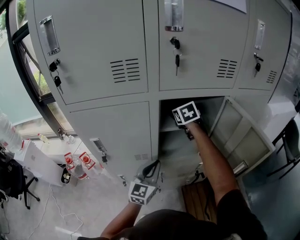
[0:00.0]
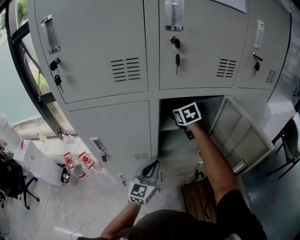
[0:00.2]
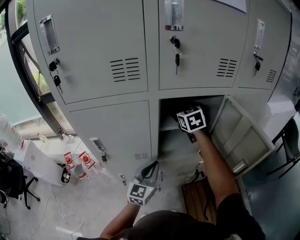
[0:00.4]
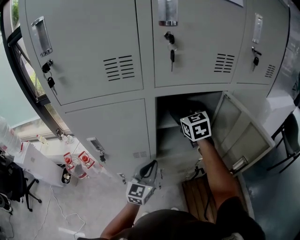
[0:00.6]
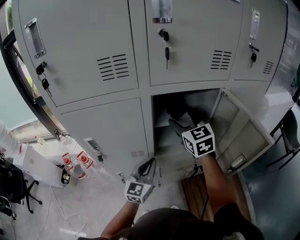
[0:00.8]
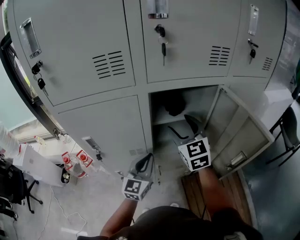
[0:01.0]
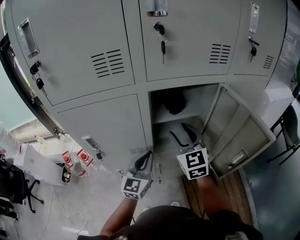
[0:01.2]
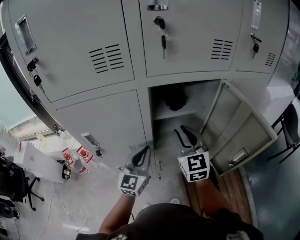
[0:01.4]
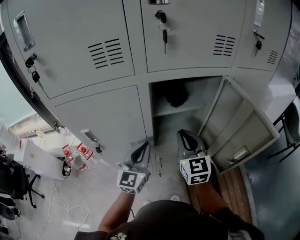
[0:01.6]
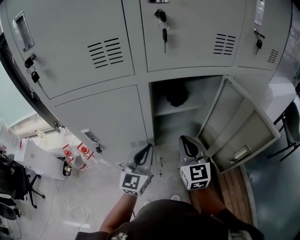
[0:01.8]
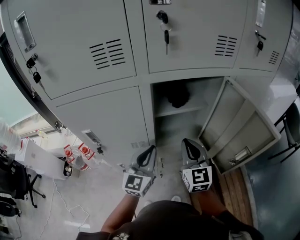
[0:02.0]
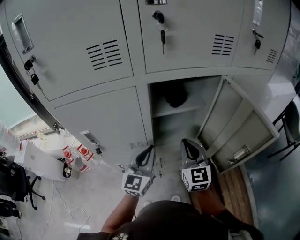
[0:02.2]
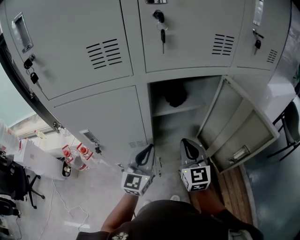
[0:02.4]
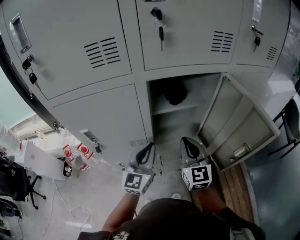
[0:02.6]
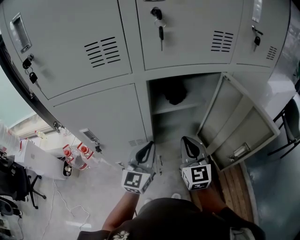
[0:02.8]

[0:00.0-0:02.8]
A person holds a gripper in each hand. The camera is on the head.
0:00.0 to 0:01.4: The right gripper moves backward, approximately 20 cm, turns by approximately 30 degrees, and closes its fingers.
0:01.4 to 0:02.8: The right gripper ends up some 5 cm from where it was.

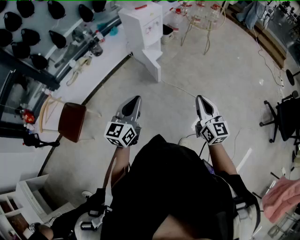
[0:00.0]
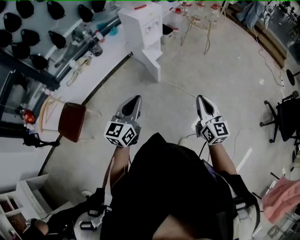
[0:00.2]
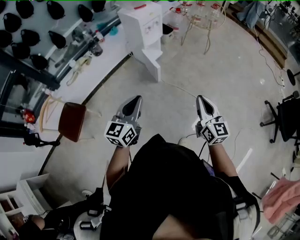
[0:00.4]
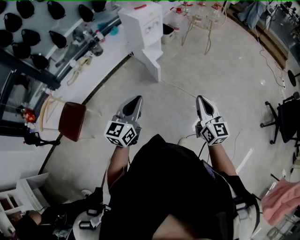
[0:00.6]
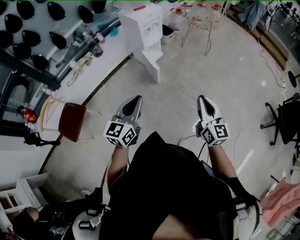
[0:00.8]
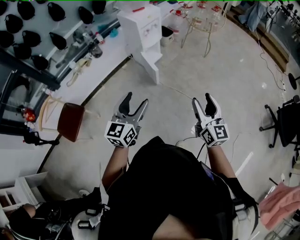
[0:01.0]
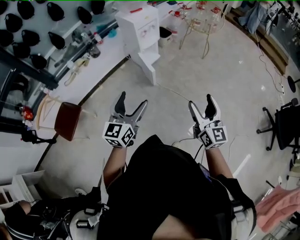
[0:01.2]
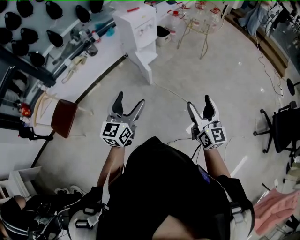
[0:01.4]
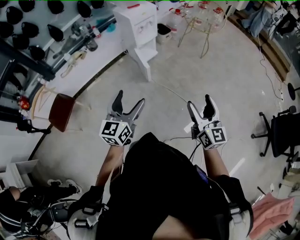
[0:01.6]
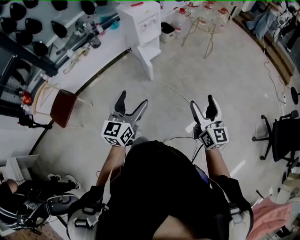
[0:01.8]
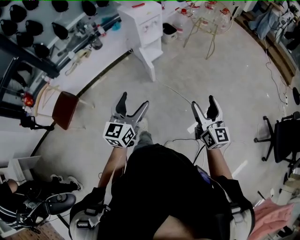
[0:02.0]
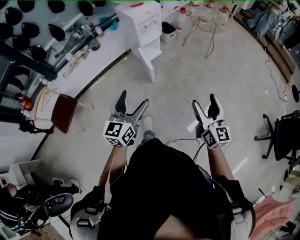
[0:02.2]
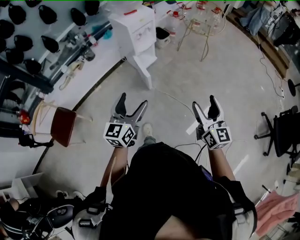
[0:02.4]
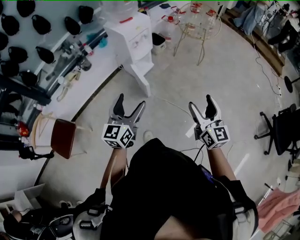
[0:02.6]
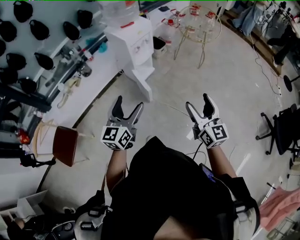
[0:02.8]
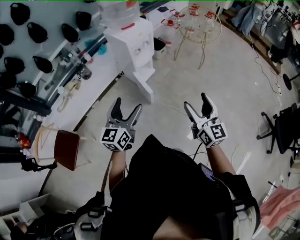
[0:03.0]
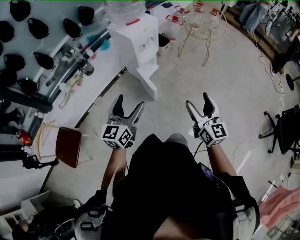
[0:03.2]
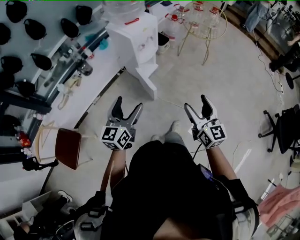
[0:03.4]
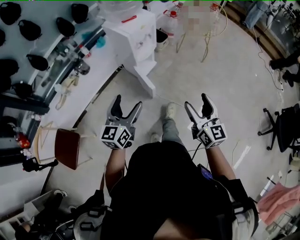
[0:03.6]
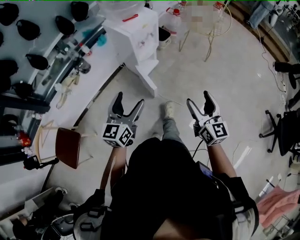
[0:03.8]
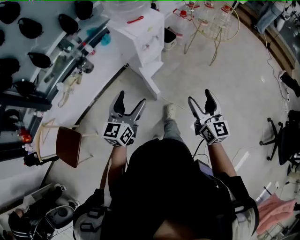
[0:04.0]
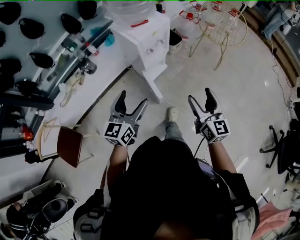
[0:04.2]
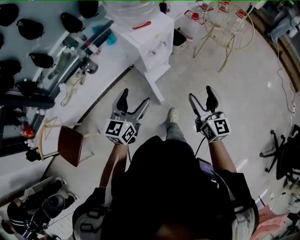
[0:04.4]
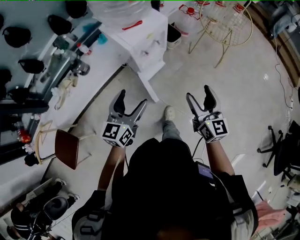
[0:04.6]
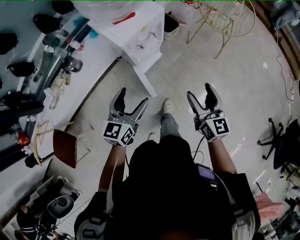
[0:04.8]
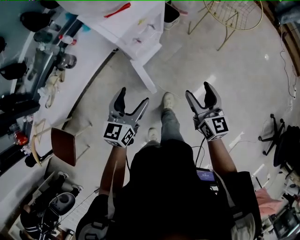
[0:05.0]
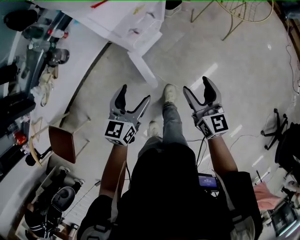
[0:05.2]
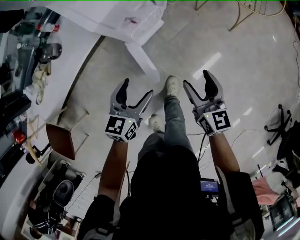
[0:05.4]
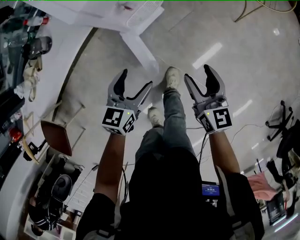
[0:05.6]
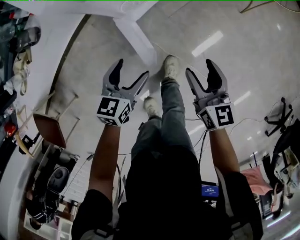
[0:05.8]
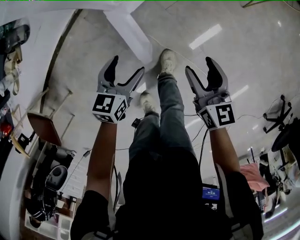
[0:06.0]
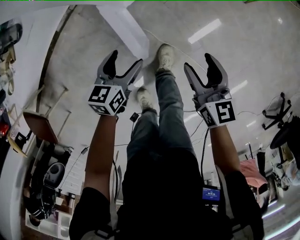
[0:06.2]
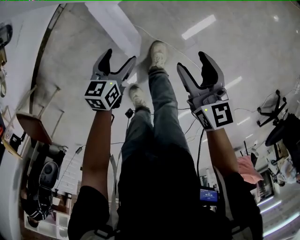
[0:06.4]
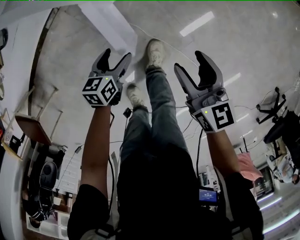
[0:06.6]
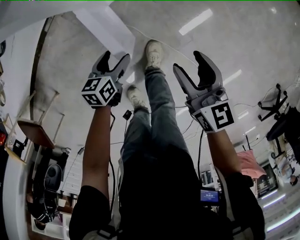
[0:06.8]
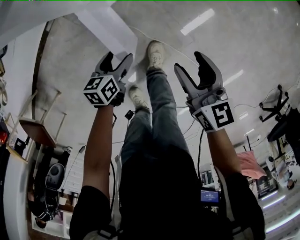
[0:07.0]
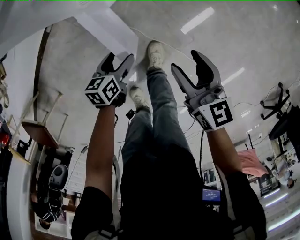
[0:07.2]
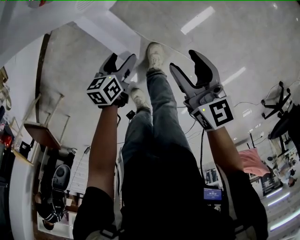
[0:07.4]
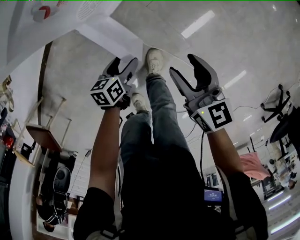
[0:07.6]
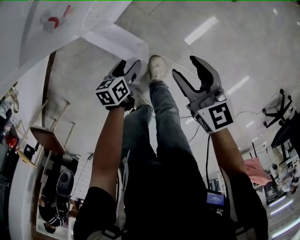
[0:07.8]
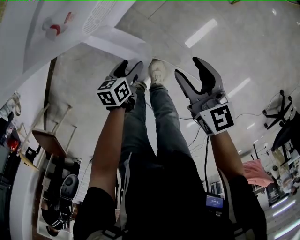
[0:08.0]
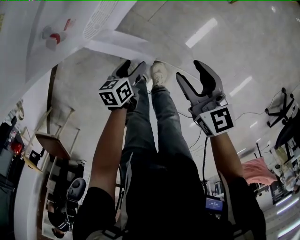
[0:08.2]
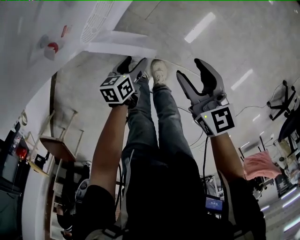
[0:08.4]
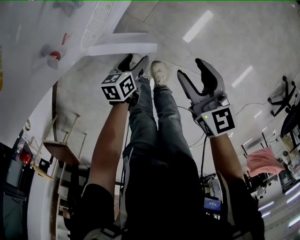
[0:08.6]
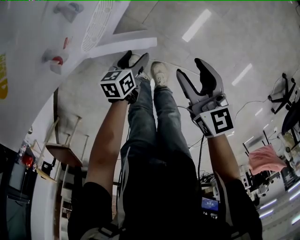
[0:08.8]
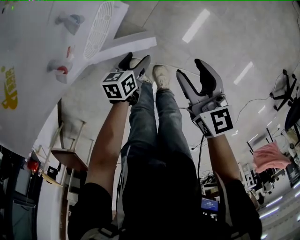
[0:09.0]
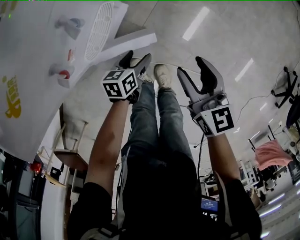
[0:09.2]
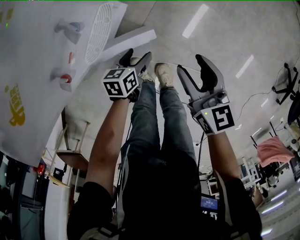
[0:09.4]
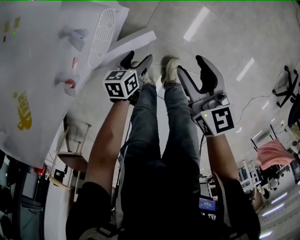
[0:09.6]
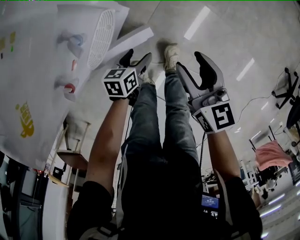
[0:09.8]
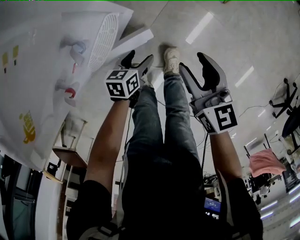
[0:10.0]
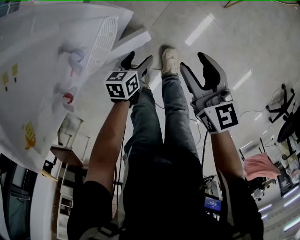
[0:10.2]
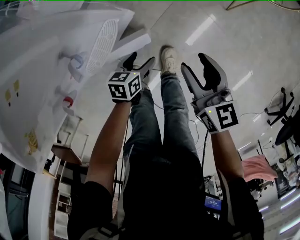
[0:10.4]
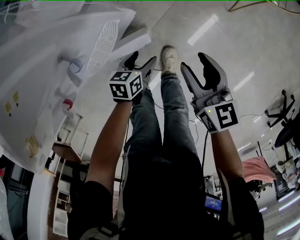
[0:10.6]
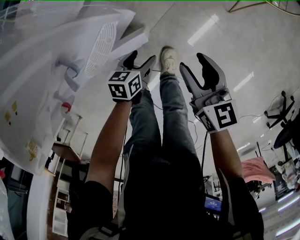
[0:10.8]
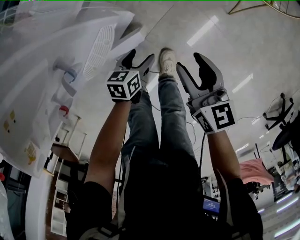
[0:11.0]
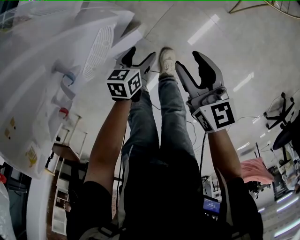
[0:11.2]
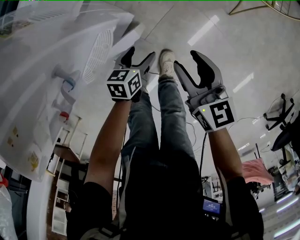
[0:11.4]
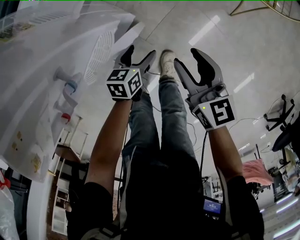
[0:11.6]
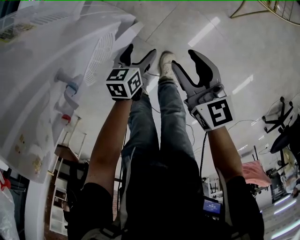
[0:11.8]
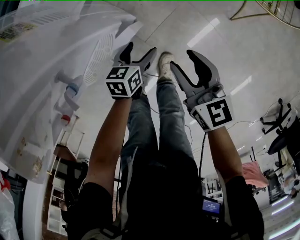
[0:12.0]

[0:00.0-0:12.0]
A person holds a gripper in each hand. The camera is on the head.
0:00.0 to 0:01.6: The grippers both shift to the right by approximately 15 cm. The right gripper opens its fingers; the left gripper opens.
0:01.6 to 0:03.0: The two grippers go roughly 20 cm forward and to the left.
0:03.0 to 0:04.4: The grippers both shift forward by approximately 25 cm.
0:04.4 to 0:06.0: The grippers both shift downward by approximately 40 cm. The left gripper rotates roughly 30 degrees. Meanwhile the right gripper changes its angle by about 20 degrees.
0:06.0 to 0:07.6: The left gripper is displaced downward and to the right by some 15 cm, and rotates some 30 degrees.
0:07.6 to 0:09.0: The left gripper moves forward, roughly 15 cm. Meanwhile the right gripper goes roughly 5 cm forward.
0:09.0 to 0:10.4: The grippers both shift forward by roughly 10 cm.
0:10.4 to 0:12.0: The right gripper moves forward, roughly 5 cm. The left gripper travels forward by about 10 cm.

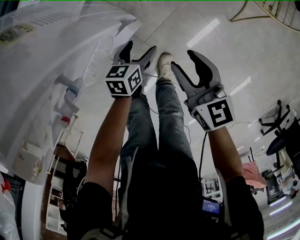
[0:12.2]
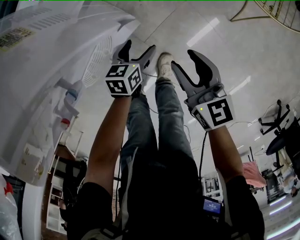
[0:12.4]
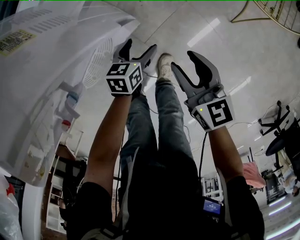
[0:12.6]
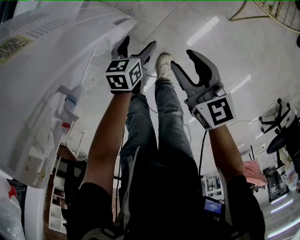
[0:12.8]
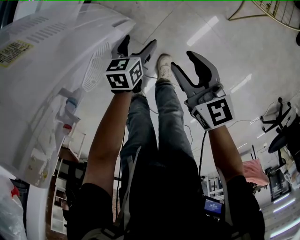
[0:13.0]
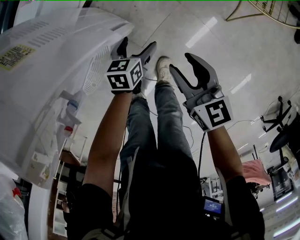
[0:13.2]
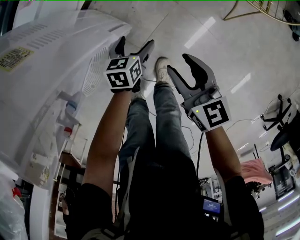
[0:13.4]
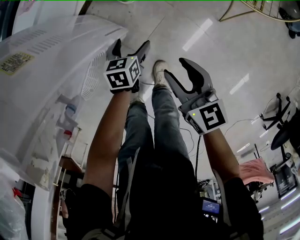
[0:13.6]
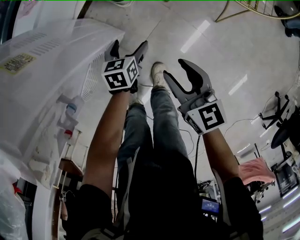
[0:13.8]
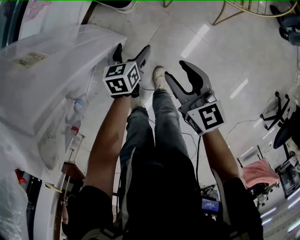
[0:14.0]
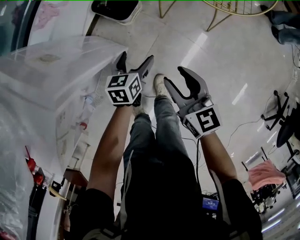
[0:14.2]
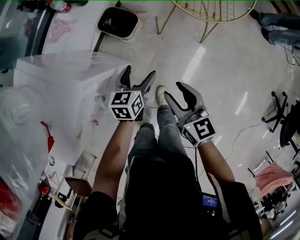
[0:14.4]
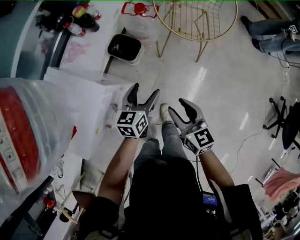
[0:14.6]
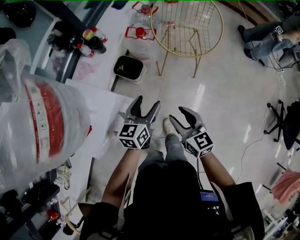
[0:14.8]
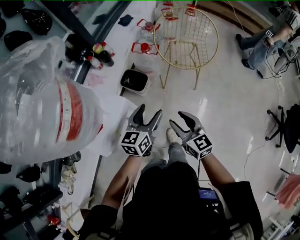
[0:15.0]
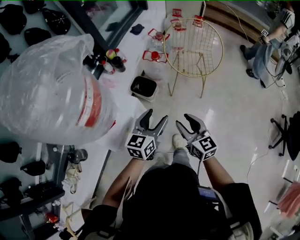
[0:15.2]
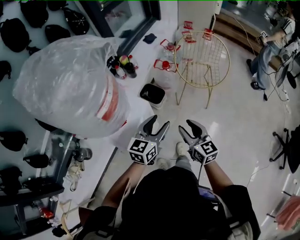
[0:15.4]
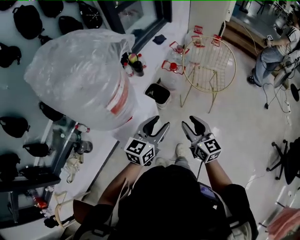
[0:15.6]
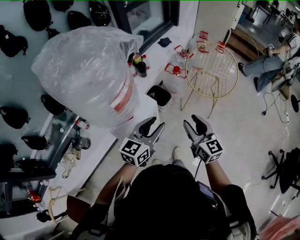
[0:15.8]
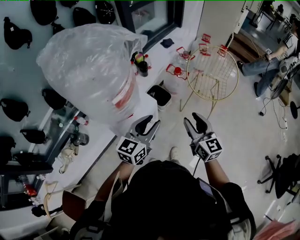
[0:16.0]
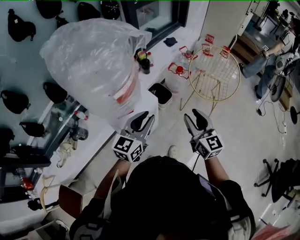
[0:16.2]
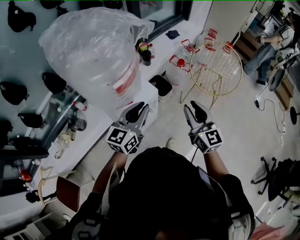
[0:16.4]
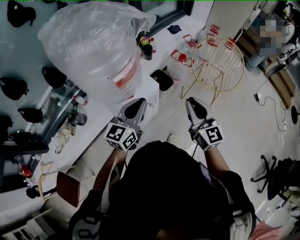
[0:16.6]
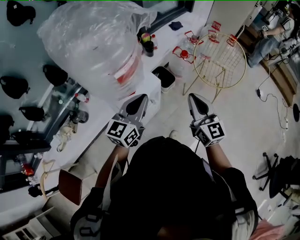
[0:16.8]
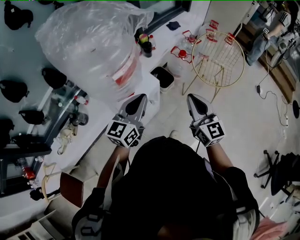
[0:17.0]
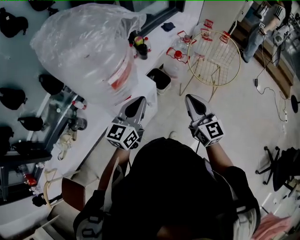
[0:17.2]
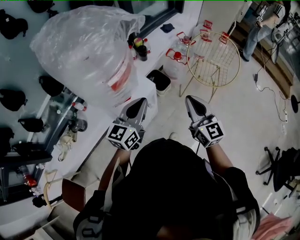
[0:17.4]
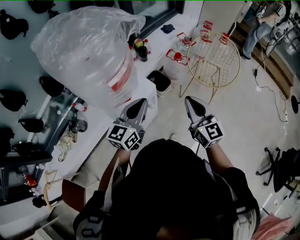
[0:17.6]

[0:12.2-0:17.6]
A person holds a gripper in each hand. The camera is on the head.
0:12.2 to 0:13.6: The left gripper travels forward by roughly 5 cm.
0:13.6 to 0:15.0: The left gripper moves upward, about 50 cm, and angles its fingers upward, by roughly 30 degrees, while the right gripper is displaced upward by roughly 35 cm, and turns by about 20 degrees.
0:15.0 to 0:16.2: The left gripper heads upward, to the left and backward, covering some 20 cm, and closes. The right gripper heads upward, covering about 15 cm.
0:16.2 to 0:17.6: The right gripper closes its fingers.

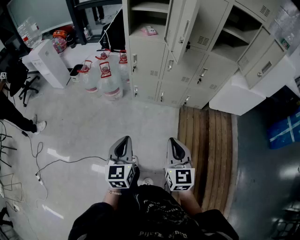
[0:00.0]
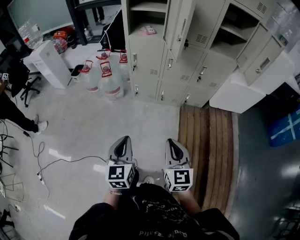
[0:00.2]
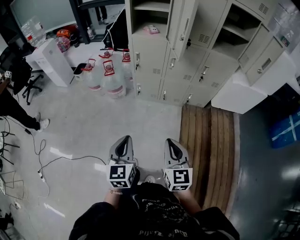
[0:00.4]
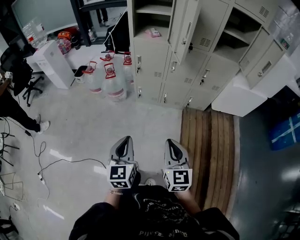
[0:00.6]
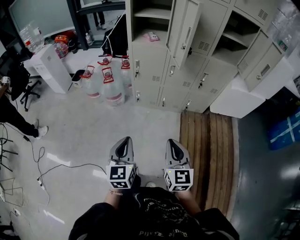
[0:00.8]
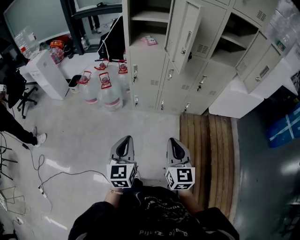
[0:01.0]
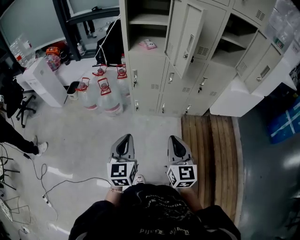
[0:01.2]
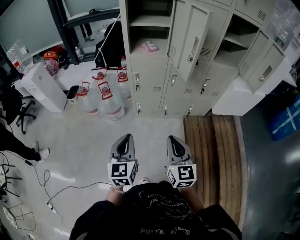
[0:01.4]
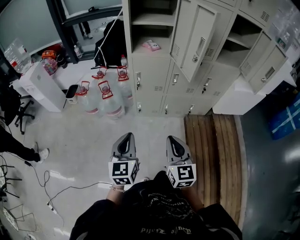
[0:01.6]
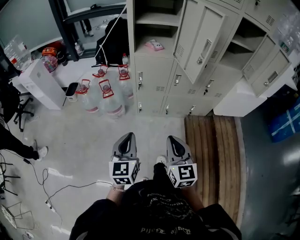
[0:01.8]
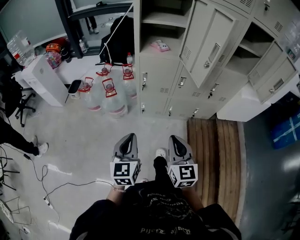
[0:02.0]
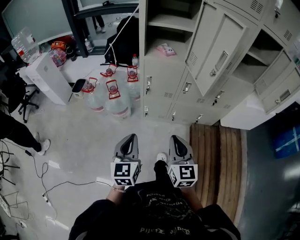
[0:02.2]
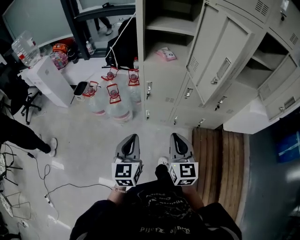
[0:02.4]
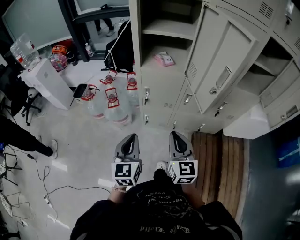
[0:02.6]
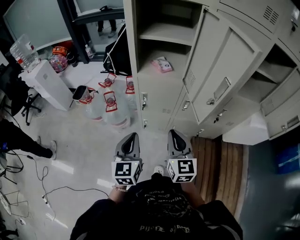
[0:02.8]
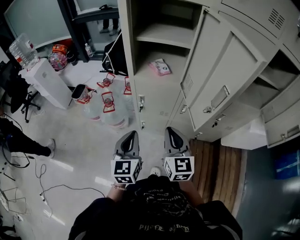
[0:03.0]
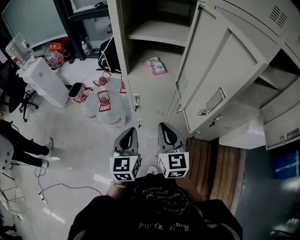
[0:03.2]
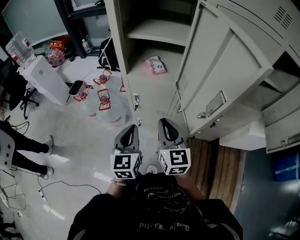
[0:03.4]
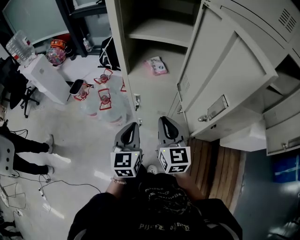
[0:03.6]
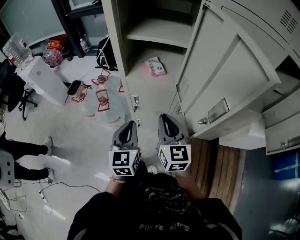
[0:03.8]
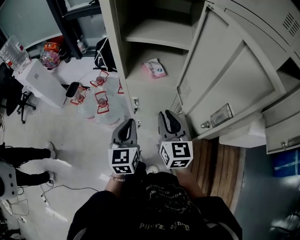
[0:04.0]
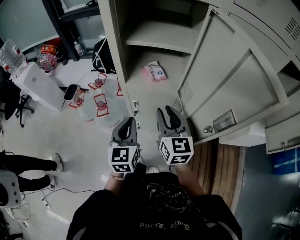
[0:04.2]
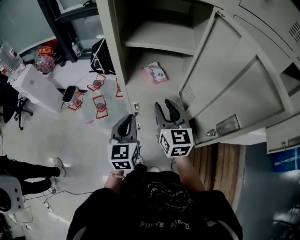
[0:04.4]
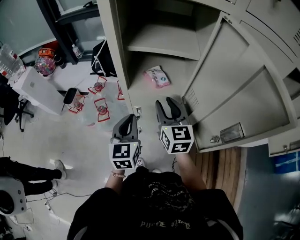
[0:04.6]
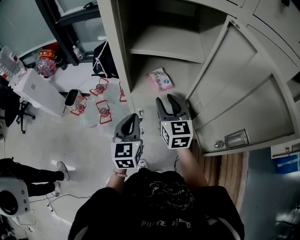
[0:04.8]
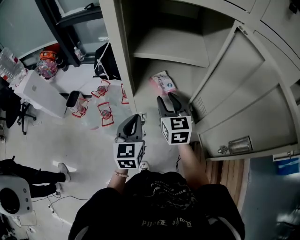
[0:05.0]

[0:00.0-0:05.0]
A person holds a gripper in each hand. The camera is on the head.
0:00.0 to 0:01.6: The two grippers go approximately 20 cm forward and to the left.
0:01.6 to 0:03.4: The left gripper travels forward and to the right by roughly 30 cm, while the right gripper heads forward, covering roughly 30 cm.
0:03.4 to 0:05.0: The two grippers go roughly 20 cm forward. The right gripper opens.
